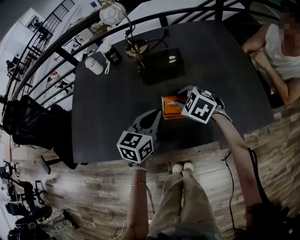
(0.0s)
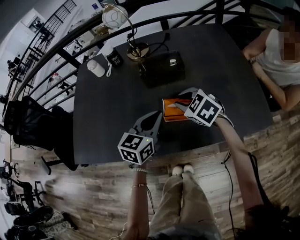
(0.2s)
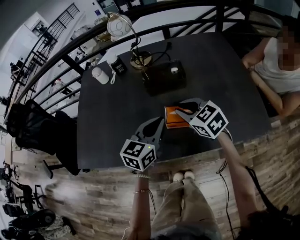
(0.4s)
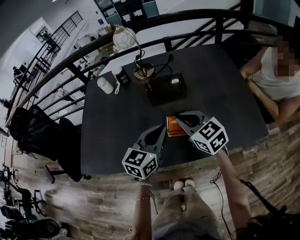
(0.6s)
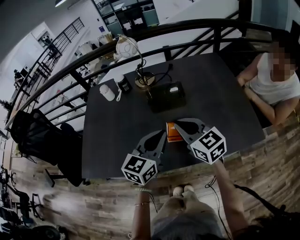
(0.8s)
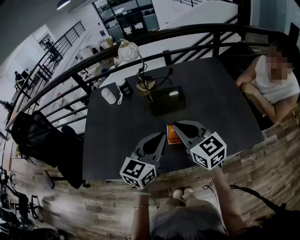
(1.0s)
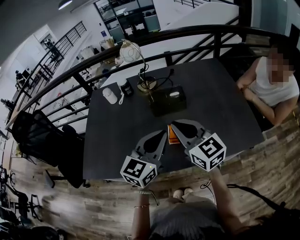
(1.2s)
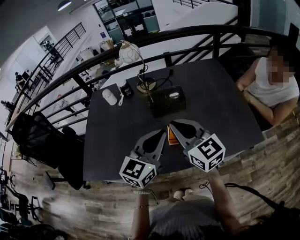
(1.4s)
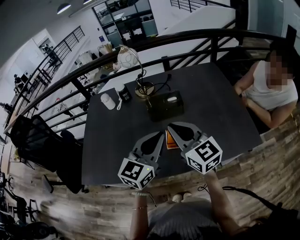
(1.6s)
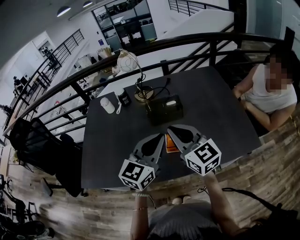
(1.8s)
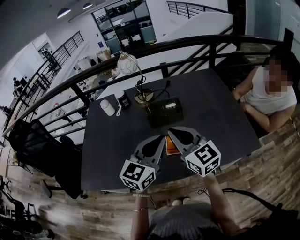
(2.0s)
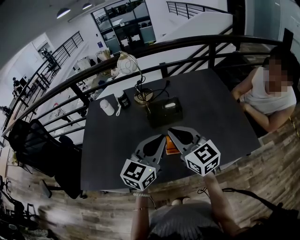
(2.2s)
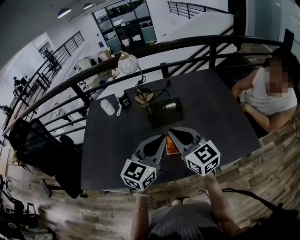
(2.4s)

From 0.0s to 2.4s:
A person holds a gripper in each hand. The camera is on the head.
From 0.0s to 1.2s: Both grippers travel together upward, approximately 15 cm. The right gripper angles its fingers upward, by some 50 degrees.
From 1.2s to 2.4s: There are only small adjustments of the grippers.

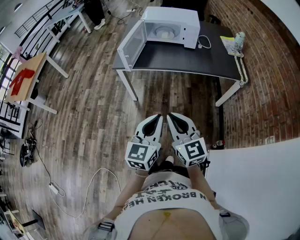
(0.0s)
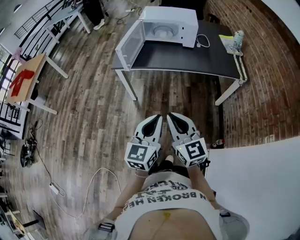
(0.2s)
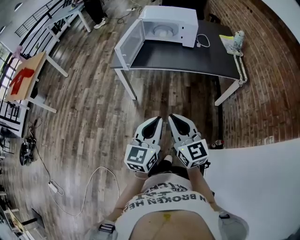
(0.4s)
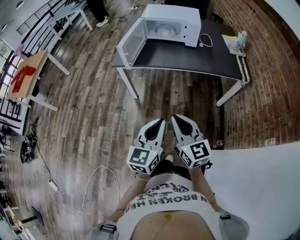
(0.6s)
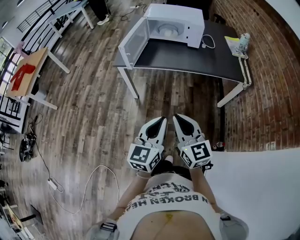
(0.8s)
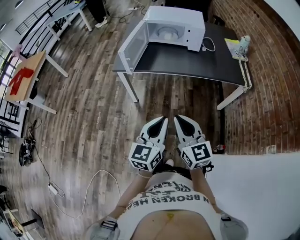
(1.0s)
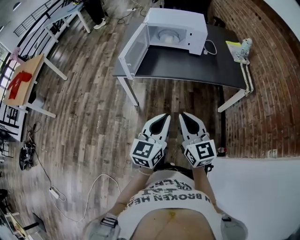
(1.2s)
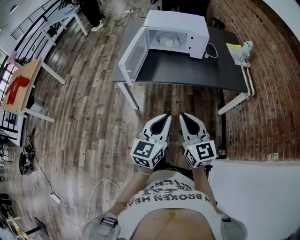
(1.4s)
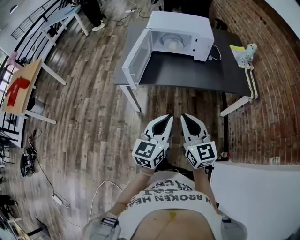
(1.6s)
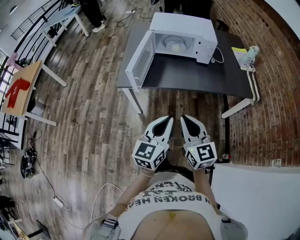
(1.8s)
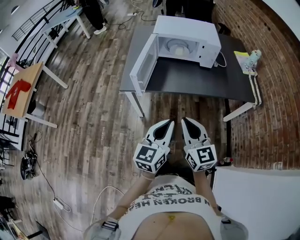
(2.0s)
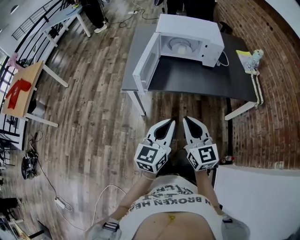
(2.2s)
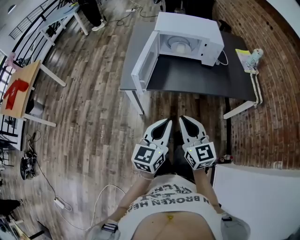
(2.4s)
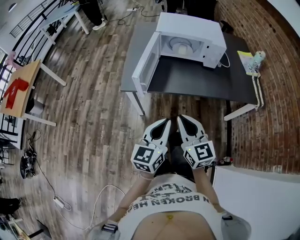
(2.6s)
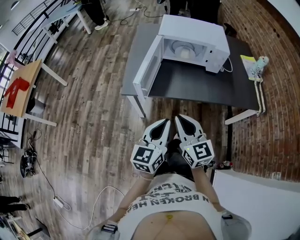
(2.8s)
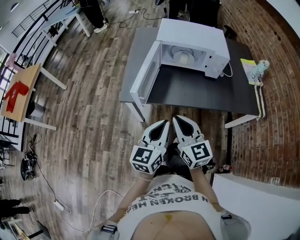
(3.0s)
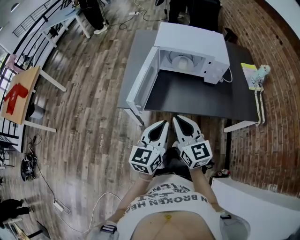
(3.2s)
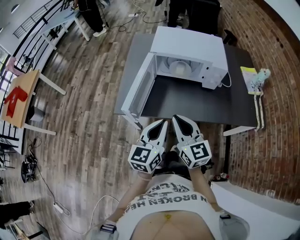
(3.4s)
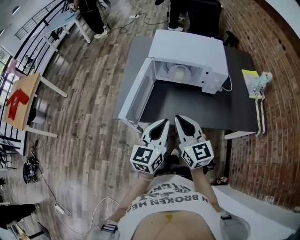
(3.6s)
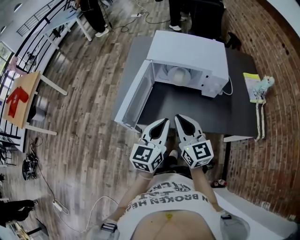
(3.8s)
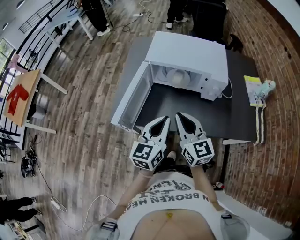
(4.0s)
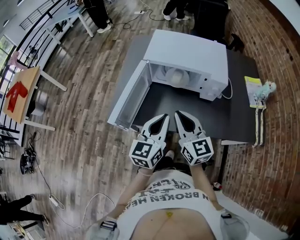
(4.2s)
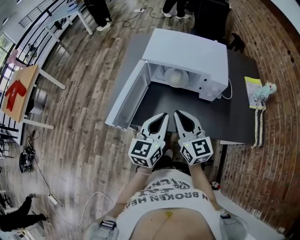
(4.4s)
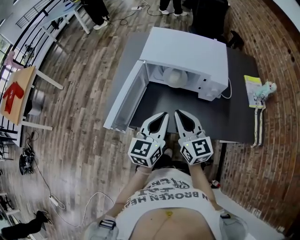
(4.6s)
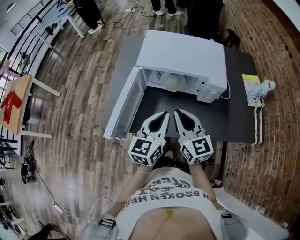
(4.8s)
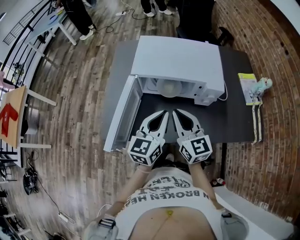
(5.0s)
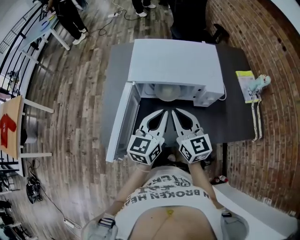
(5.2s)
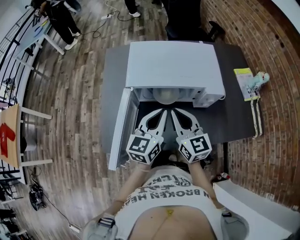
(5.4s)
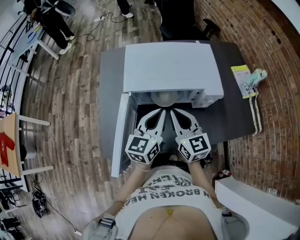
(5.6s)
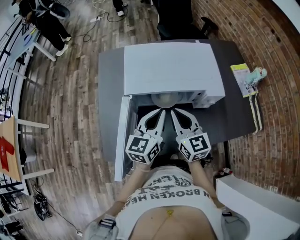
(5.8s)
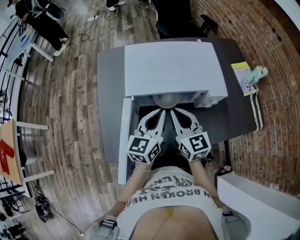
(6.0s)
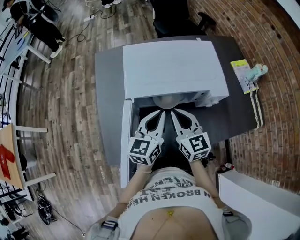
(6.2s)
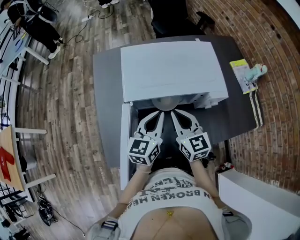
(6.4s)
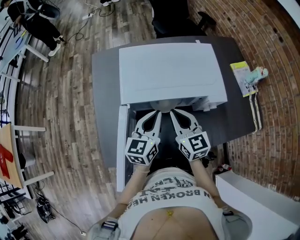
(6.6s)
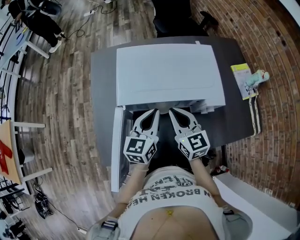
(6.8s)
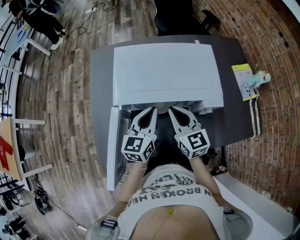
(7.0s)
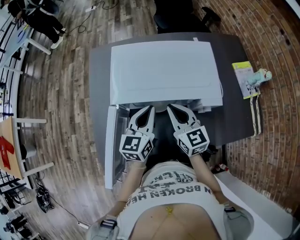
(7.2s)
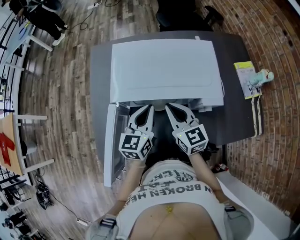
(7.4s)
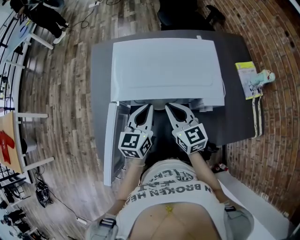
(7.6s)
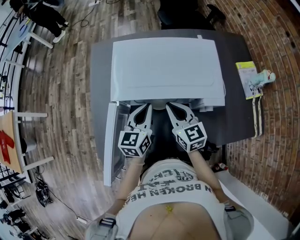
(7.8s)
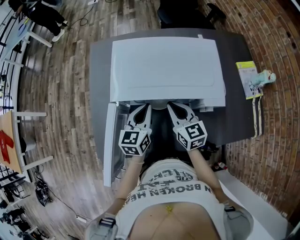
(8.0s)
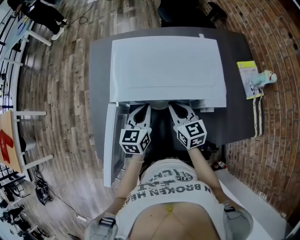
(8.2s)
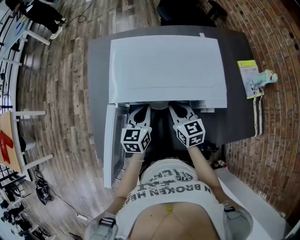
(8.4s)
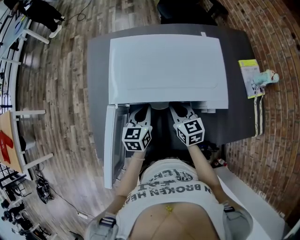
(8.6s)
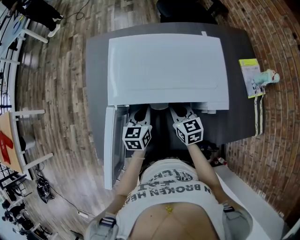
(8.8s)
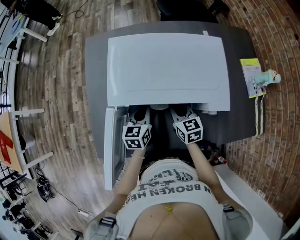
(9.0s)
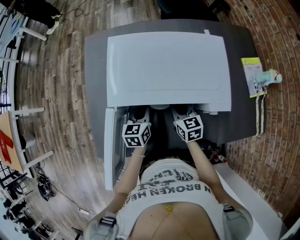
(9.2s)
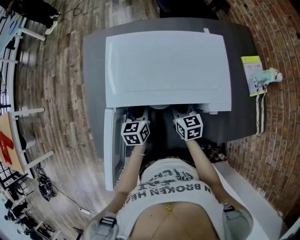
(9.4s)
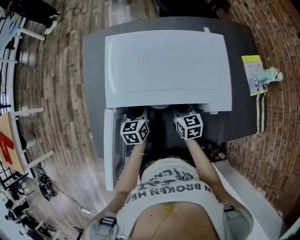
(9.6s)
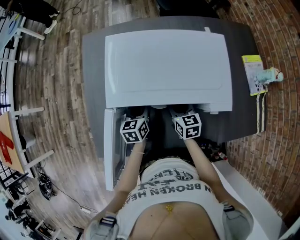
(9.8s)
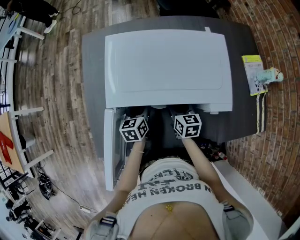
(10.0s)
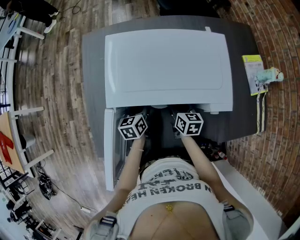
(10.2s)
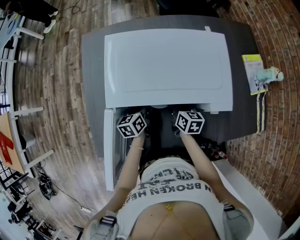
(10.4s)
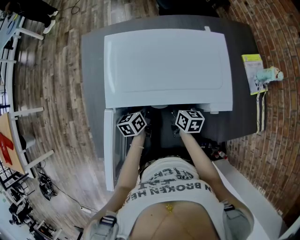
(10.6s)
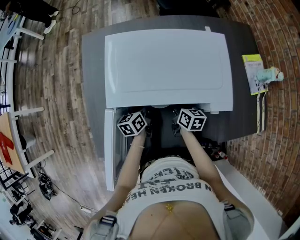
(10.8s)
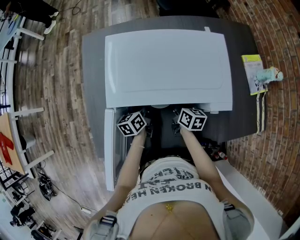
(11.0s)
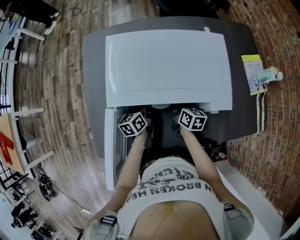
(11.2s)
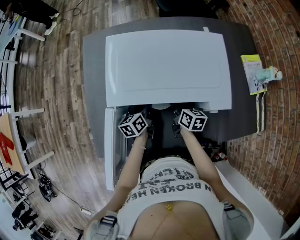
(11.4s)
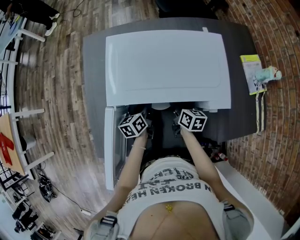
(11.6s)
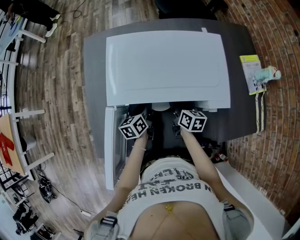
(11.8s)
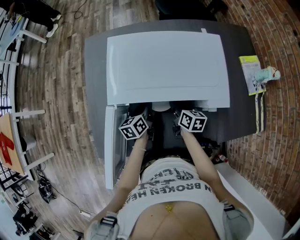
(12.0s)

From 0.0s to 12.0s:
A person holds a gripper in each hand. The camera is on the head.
From 0.0s to 1.6s: Both grippers move forward, about 20 cm.
From 1.6s to 3.0s: The two grippers go approximately 15 cm forward and to the left.
From 3.0s to 4.4s: Both grippers move forward and to the right, some 25 cm.
From 4.4s to 6.0s: The two grippers go some 20 cm forward.
From 6.0s to 7.6s: The two grippers go approximately 5 cm forward.
From 7.6s to 9.0s: Both grippers move downward, roughly 10 cm.
From 9.0s to 10.4s: The two grippers go approximately 5 cm downward. The left gripper opens its fingers. The right gripper swivels about 30 degrees, and opens its fingers.
From 10.4s to 12.0s: The right gripper closes.

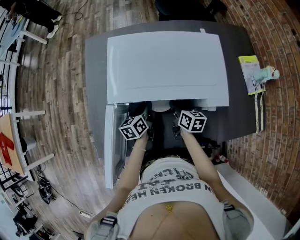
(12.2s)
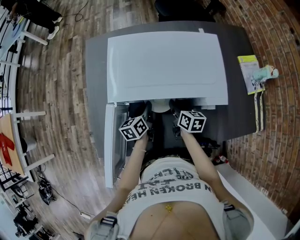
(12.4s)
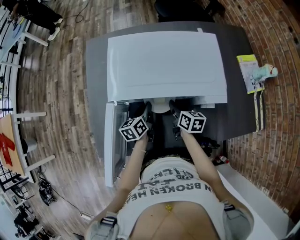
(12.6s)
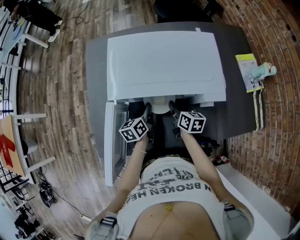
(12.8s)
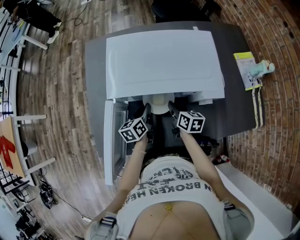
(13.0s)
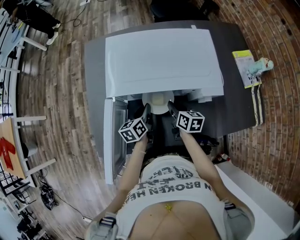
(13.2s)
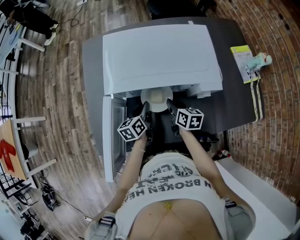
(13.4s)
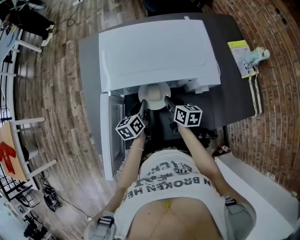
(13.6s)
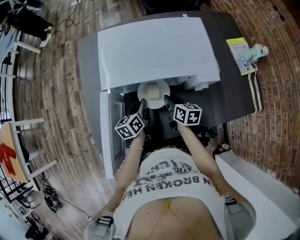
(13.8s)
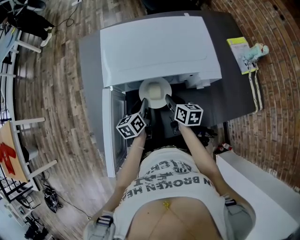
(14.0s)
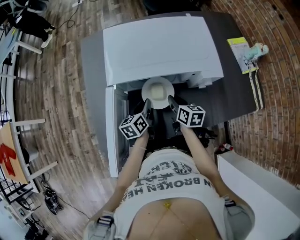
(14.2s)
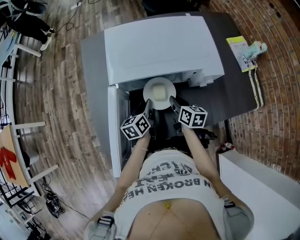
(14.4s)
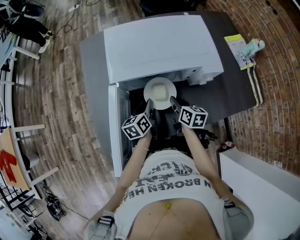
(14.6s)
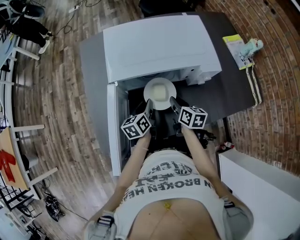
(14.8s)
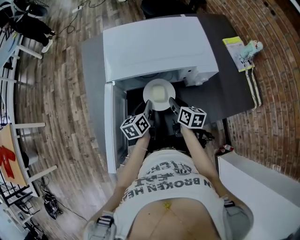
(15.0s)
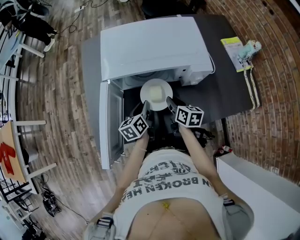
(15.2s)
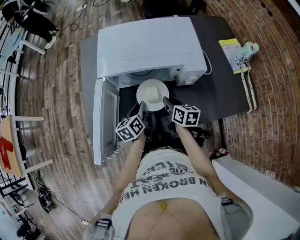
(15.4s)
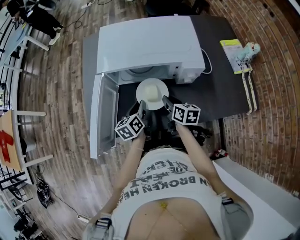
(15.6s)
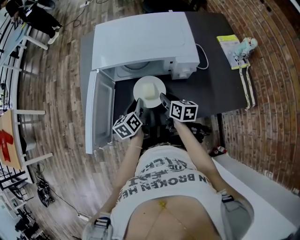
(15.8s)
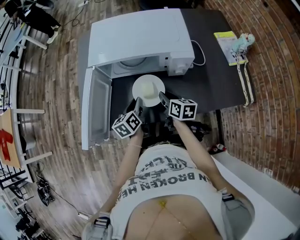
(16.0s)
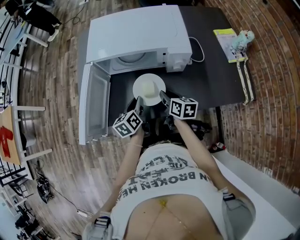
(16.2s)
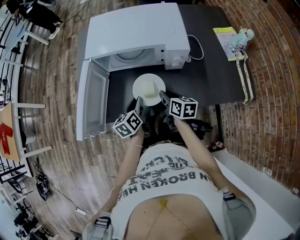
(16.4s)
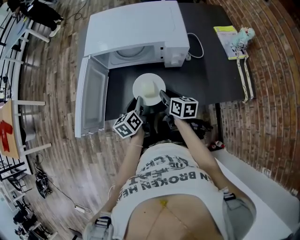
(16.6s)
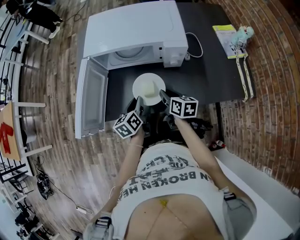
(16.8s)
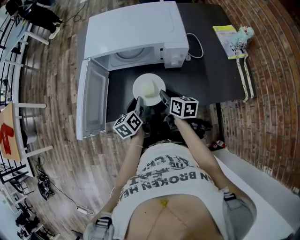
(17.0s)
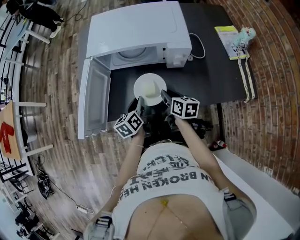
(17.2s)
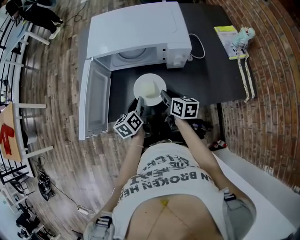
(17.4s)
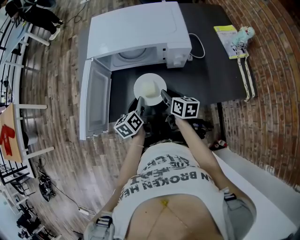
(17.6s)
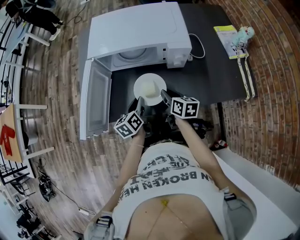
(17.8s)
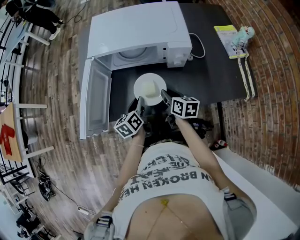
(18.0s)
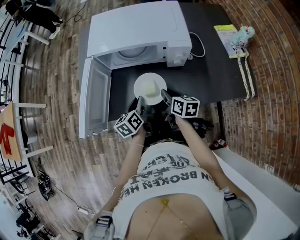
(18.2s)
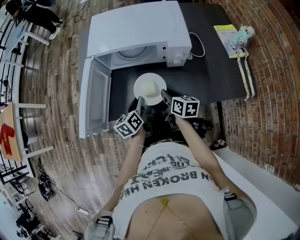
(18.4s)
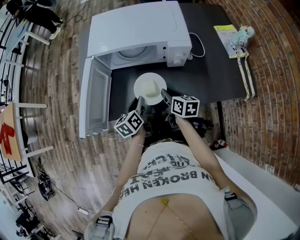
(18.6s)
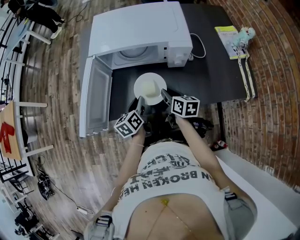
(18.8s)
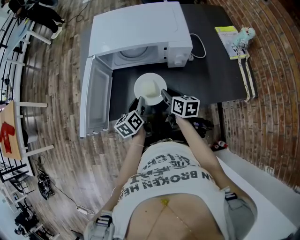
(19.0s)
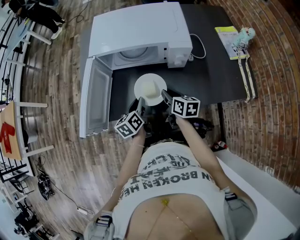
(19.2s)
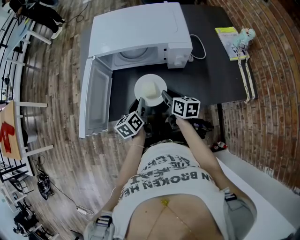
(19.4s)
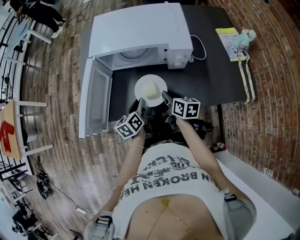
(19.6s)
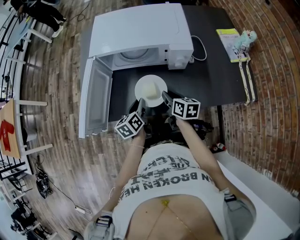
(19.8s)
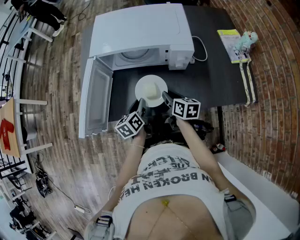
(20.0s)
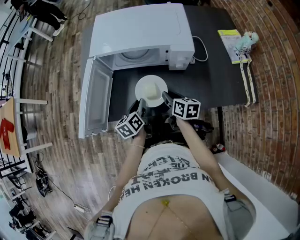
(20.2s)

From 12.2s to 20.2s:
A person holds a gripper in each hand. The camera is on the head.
From 12.2s to 13.8s: The two grippers go approximately 5 cm backward.
From 13.8s to 15.4s: The grippers both shift backward by some 5 cm.
From 15.4s to 17.0s: The grippers both shift backward by roughly 10 cm.
From 17.0s to 20.2s: Neither gripper changes place.

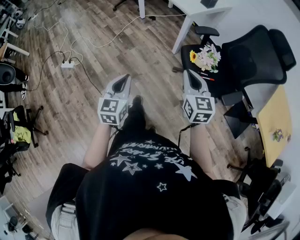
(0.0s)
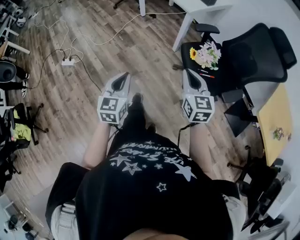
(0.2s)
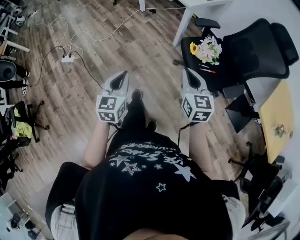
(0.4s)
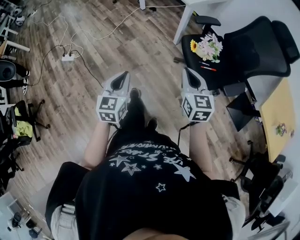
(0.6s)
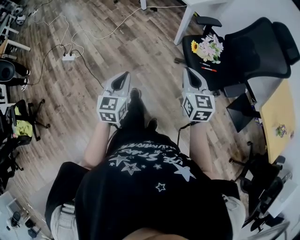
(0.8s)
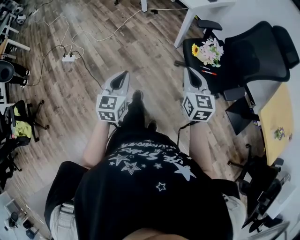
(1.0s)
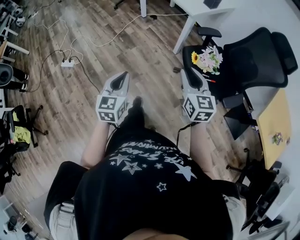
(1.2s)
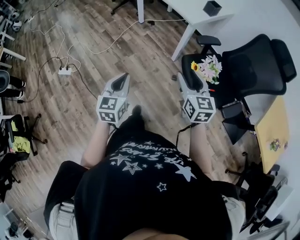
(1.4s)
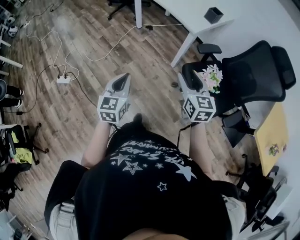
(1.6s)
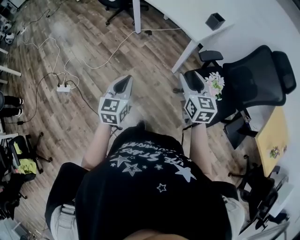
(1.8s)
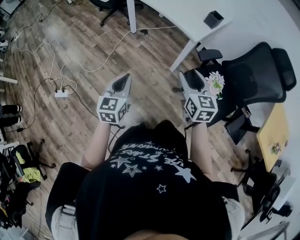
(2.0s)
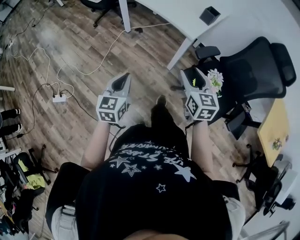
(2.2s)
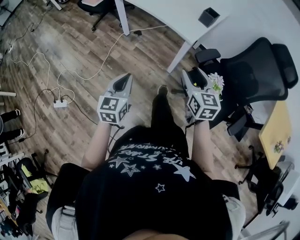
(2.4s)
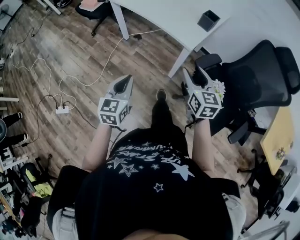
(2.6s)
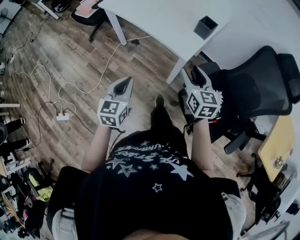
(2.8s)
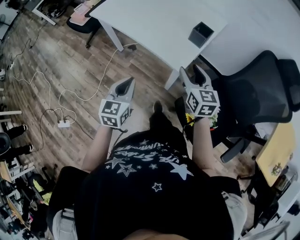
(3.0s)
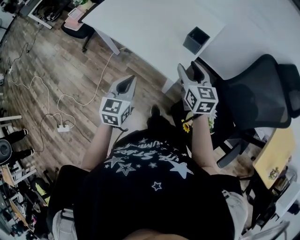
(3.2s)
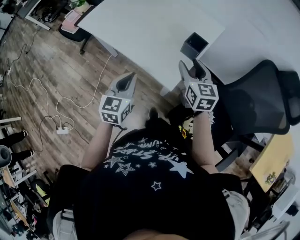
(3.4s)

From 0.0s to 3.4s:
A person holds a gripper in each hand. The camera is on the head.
From 0.0s to 1.6s: Both grippers move forward, about 20 cm. The right gripper opens its fingers.
From 1.6s to 3.4s: The pair of grippers is taken forward, about 50 cm.
